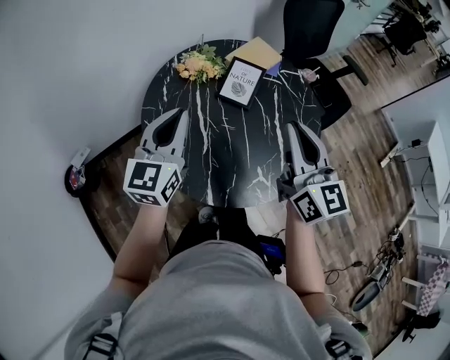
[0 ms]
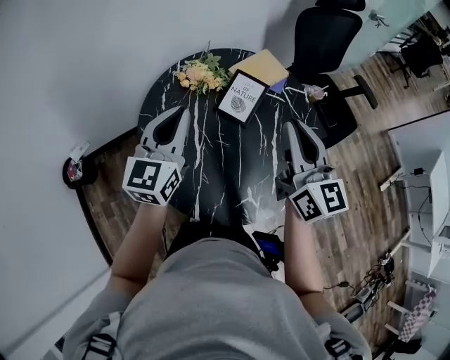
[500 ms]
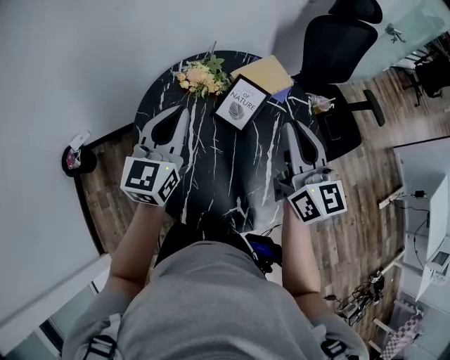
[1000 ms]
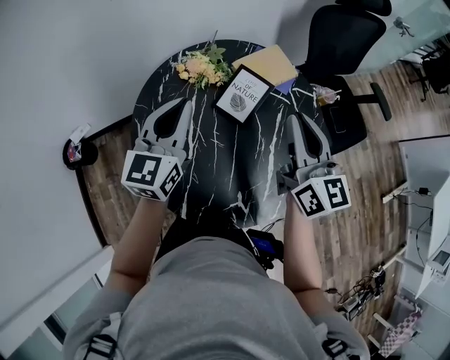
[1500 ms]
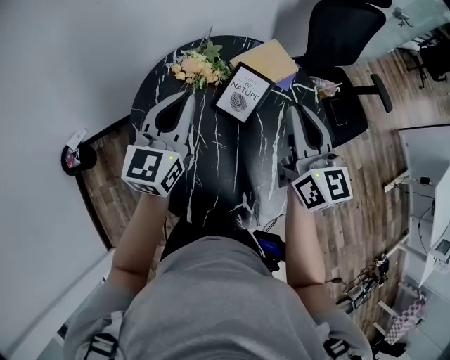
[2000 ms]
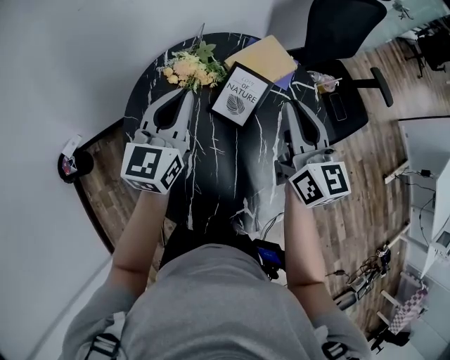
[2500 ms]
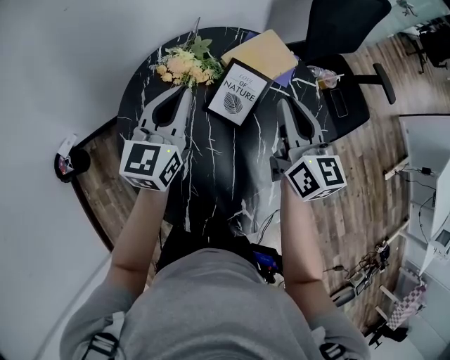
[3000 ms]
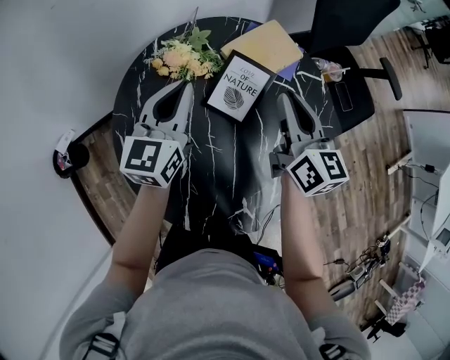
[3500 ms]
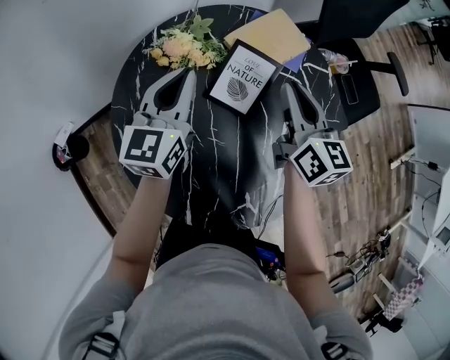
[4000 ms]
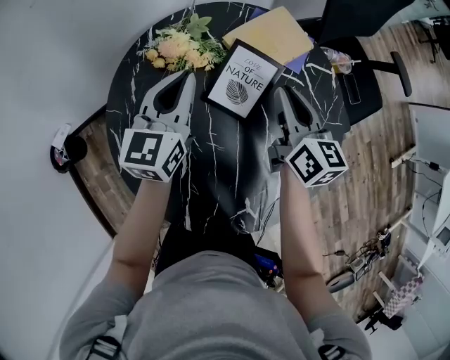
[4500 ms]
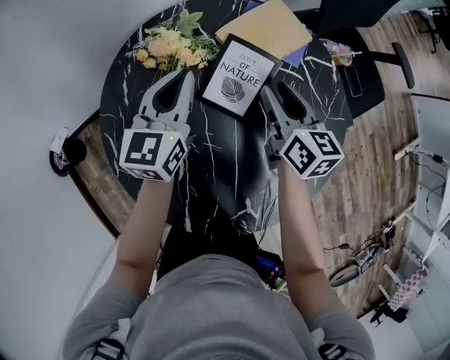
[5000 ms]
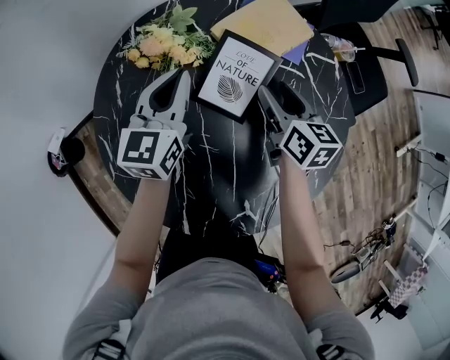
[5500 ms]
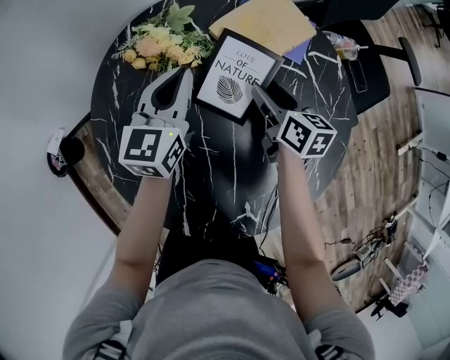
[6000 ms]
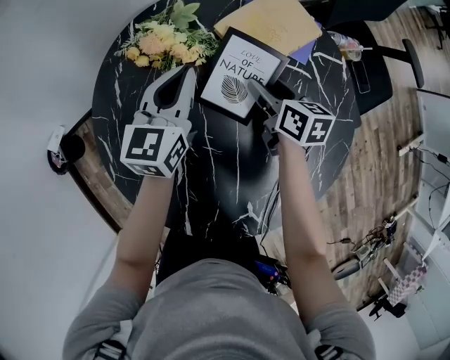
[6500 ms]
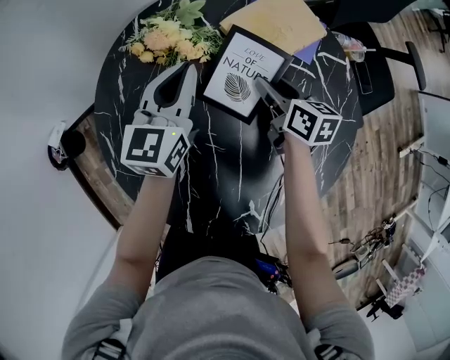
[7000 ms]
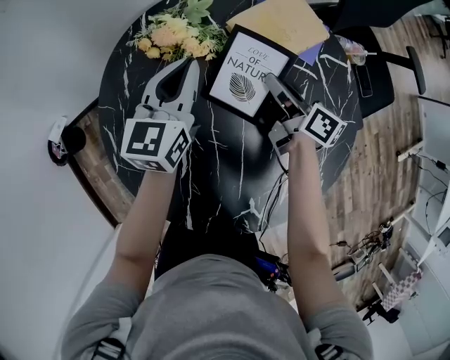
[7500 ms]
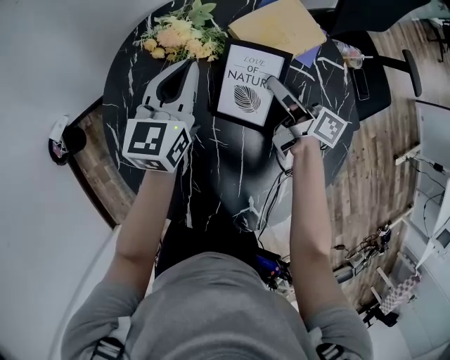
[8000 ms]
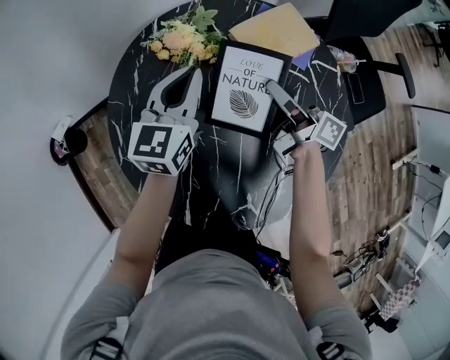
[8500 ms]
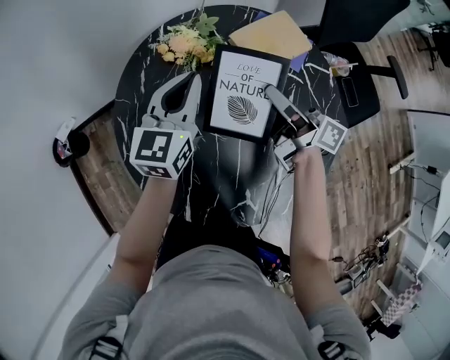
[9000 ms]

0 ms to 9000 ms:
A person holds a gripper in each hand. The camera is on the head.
0 ms to 2000 ms: The right gripper heads forward, covering about 20 cm; the left gripper moves forward and to the right, about 15 cm.
2000 ms to 4500 ms: The grippers both shift downward and forward by about 20 cm. The right gripper changes its angle by roughly 20 degrees.
4500 ms to 7000 ms: The right gripper heads downward, covering about 15 cm, changes its angle by some 20 degrees, and opens; the left gripper travels downward by approximately 5 cm.
7000 ms to 9000 ms: The right gripper is displaced upward by approximately 20 cm, tips its fingers upward by some 40 degrees, and closes; the left gripper shifts roughly 10 cm upward and backward.

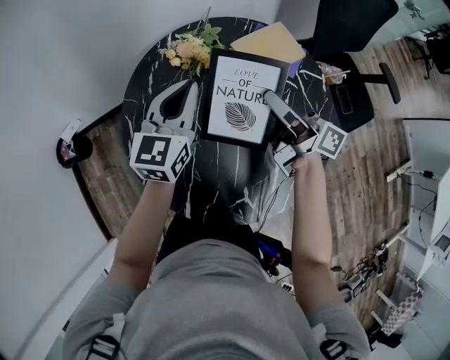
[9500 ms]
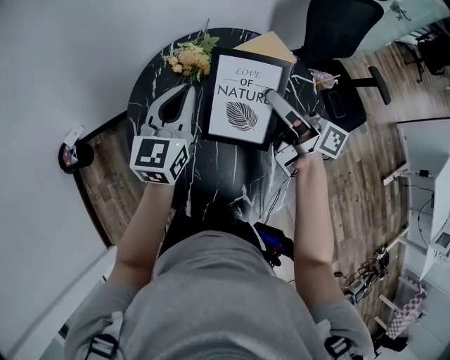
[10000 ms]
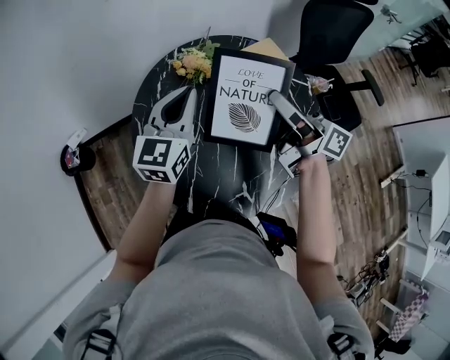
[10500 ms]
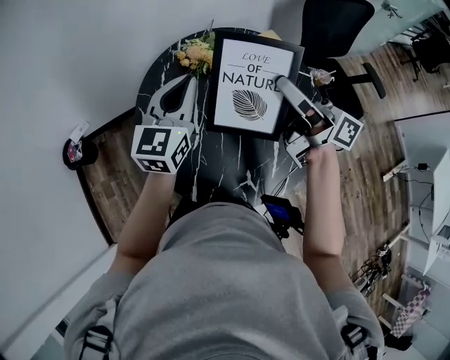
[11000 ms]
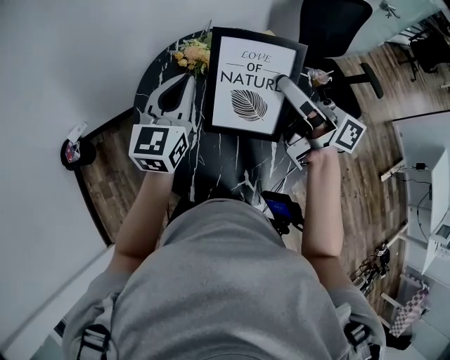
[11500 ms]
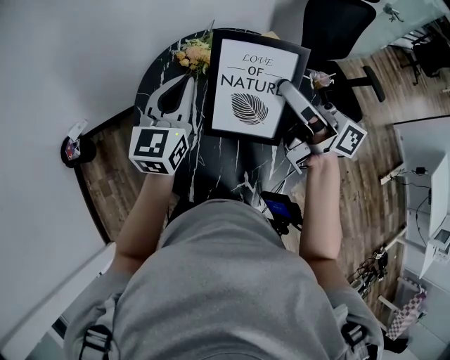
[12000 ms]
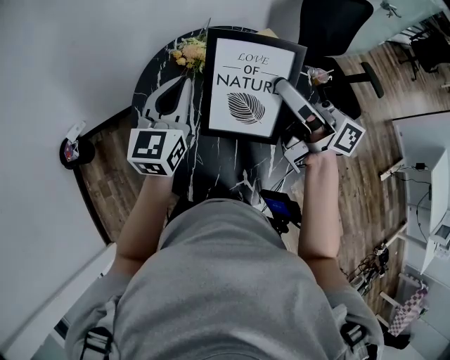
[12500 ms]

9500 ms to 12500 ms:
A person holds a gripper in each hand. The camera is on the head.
9500 ms to 11000 ms: The right gripper travels upward and backward by roughly 15 cm. The left gripper moves upward and backward, approximately 10 cm.
11000 ms to 12500 ms: The grippers make only small movements.

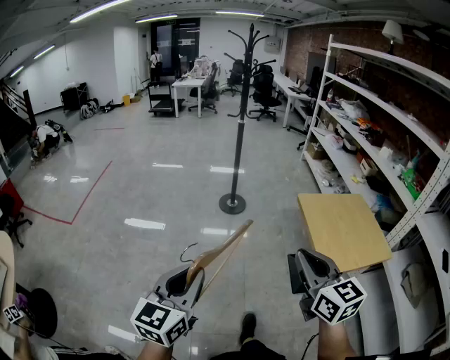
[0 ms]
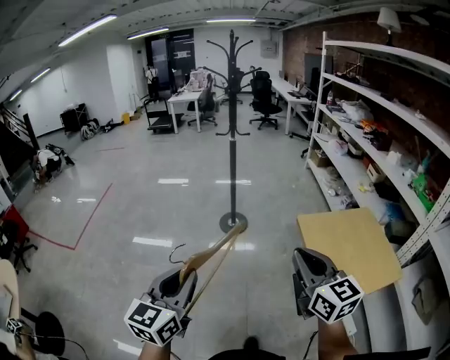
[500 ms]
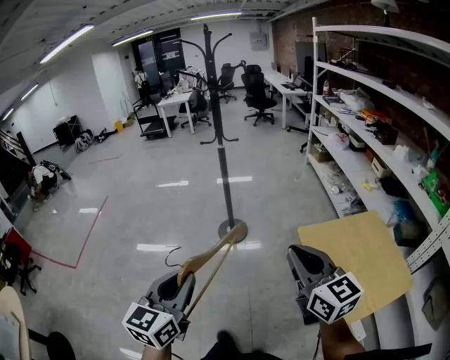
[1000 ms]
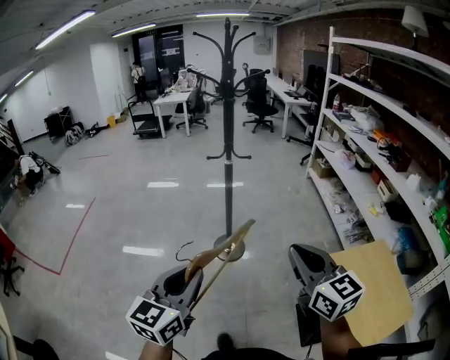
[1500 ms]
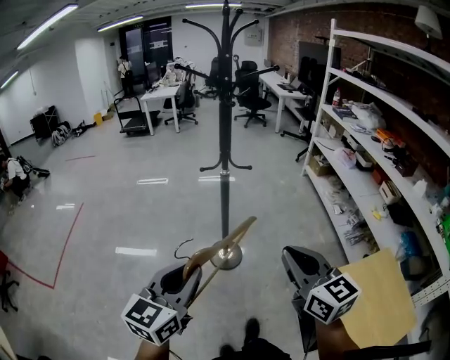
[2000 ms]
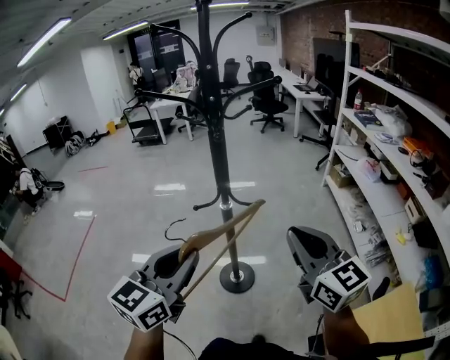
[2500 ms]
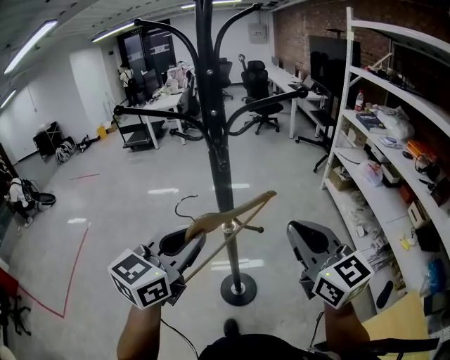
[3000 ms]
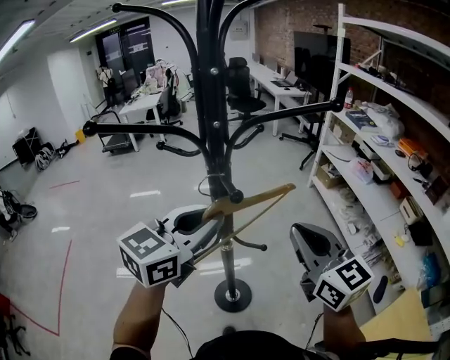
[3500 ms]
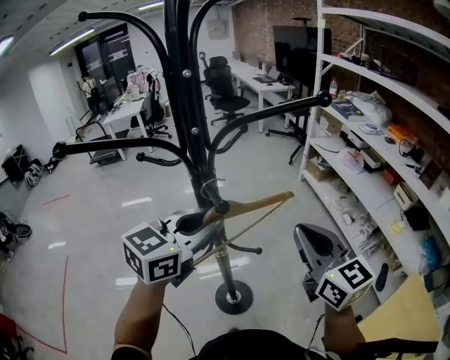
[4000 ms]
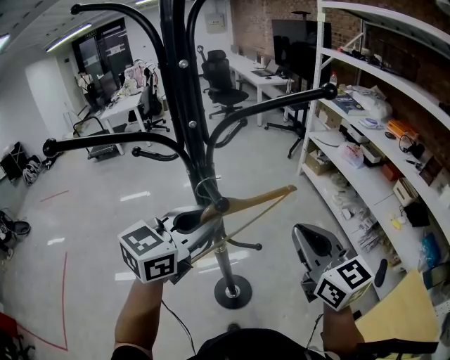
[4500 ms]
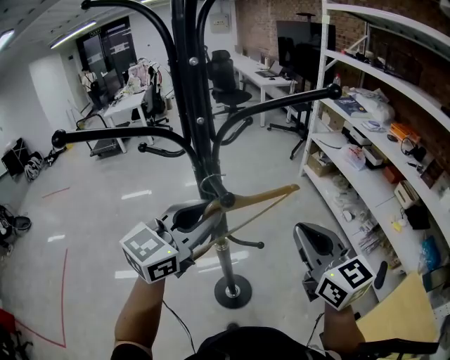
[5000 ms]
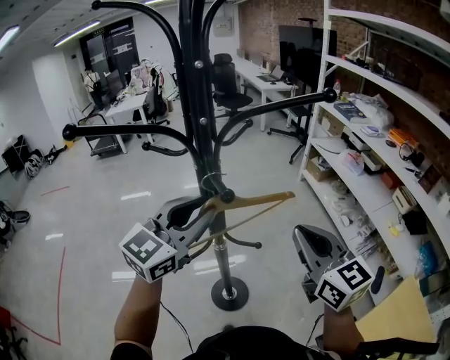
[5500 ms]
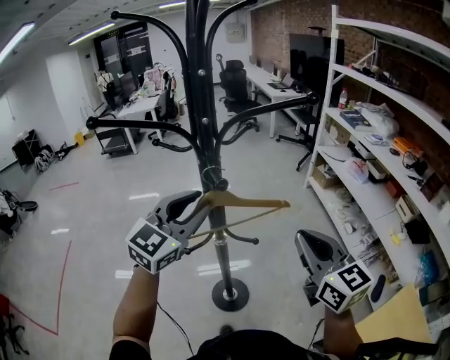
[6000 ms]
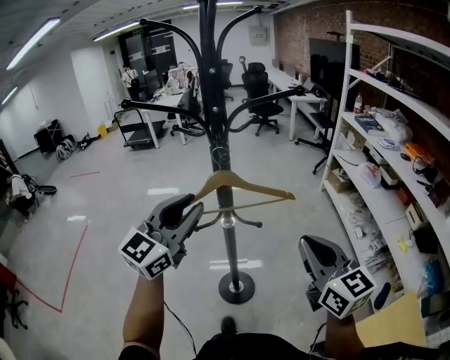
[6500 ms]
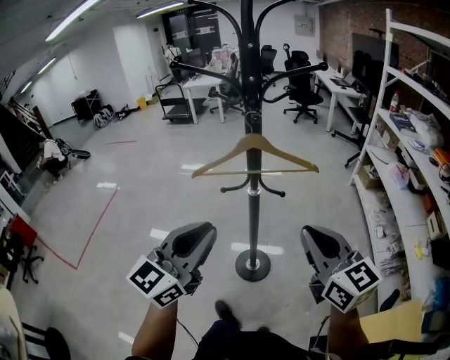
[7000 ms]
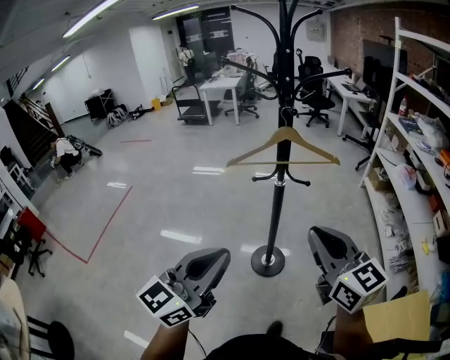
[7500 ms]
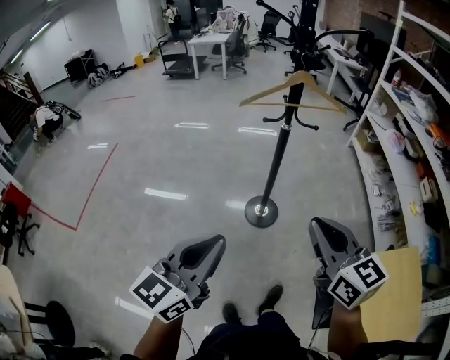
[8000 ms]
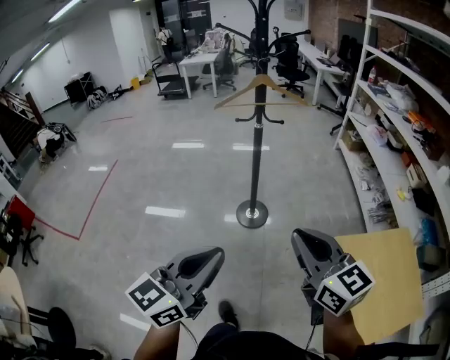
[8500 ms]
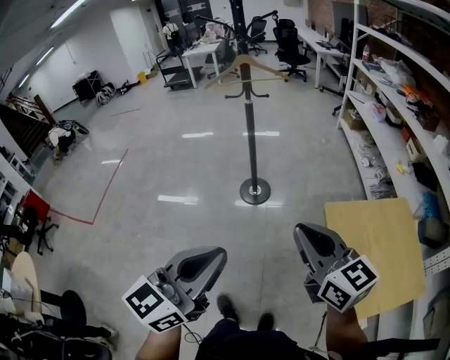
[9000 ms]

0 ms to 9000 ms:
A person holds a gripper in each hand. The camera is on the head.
0 ms to 2000 ms: Both grippers are carried forward, about 60 cm.
2000 ms to 4500 ms: The two grippers go some 40 cm forward. The left gripper rotates approximately 30 degrees.
4500 ms to 7000 ms: The left gripper moves some 25 cm, and turns by some 40 degrees; the right gripper shifts by about 15 cm, and swivels roughly 20 degrees.
7000 ms to 9000 ms: The pair of grippers is taken backward, roughly 50 cm.

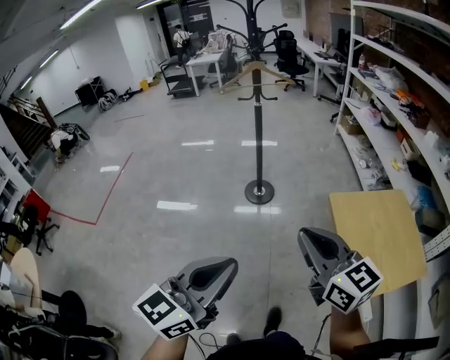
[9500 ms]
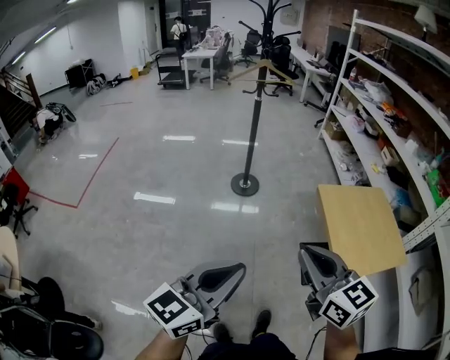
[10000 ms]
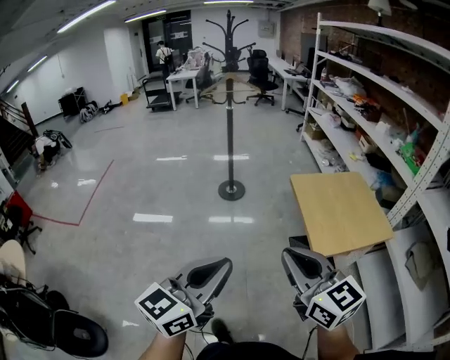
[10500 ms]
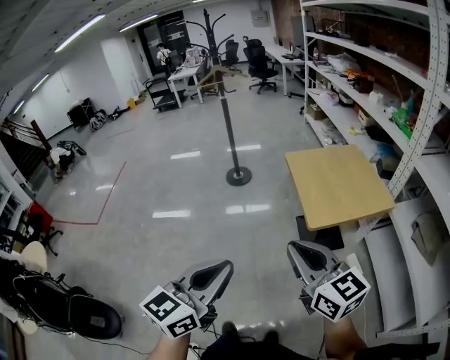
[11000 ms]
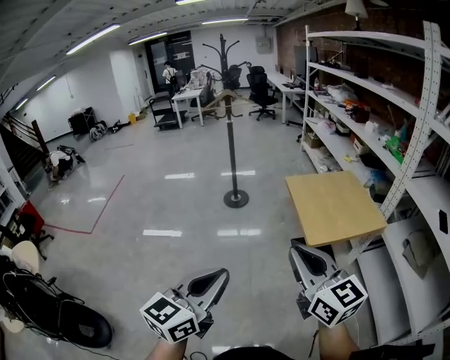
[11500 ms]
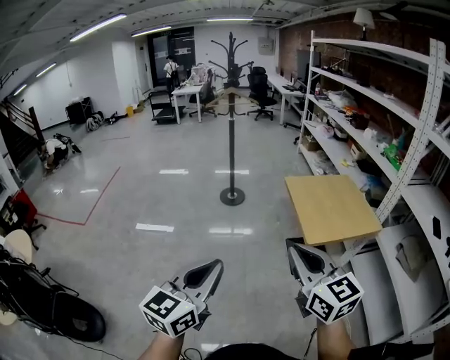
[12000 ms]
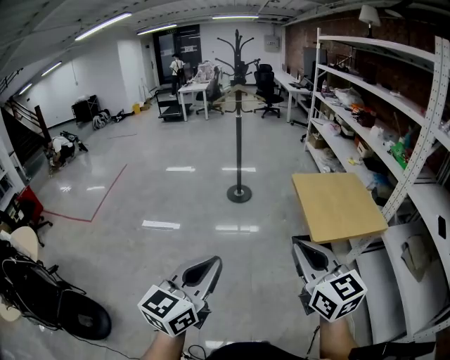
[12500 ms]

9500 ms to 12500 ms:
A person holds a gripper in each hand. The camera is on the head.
9500 ms to 11000 ms: Both grippers travel together backward and to the right, about 35 cm.
11000 ms to 12500 ms: The left gripper is displaced to the left by approximately 10 cm; the right gripper heads to the left, covering some 5 cm.

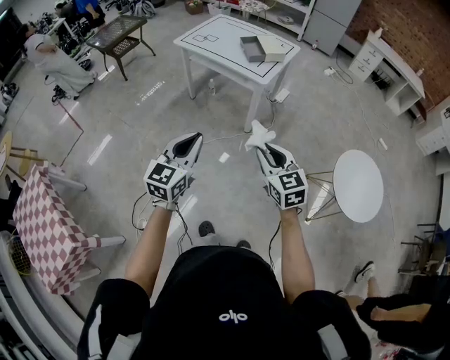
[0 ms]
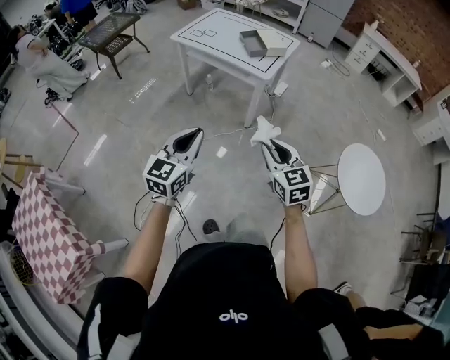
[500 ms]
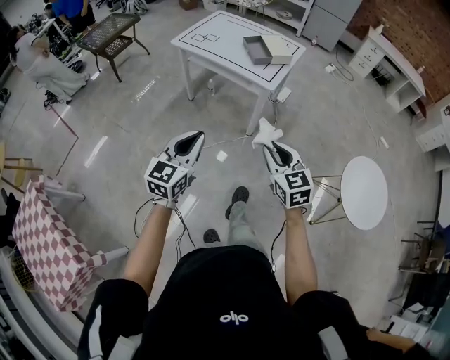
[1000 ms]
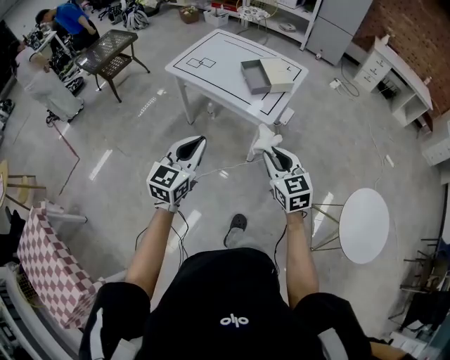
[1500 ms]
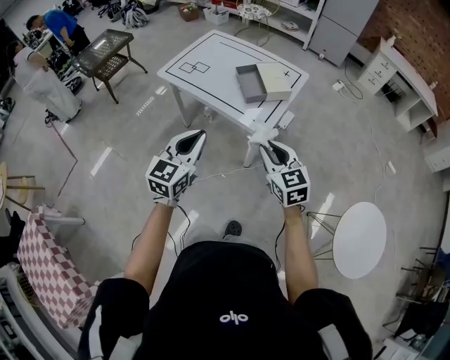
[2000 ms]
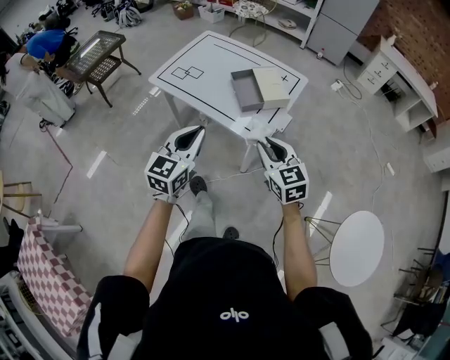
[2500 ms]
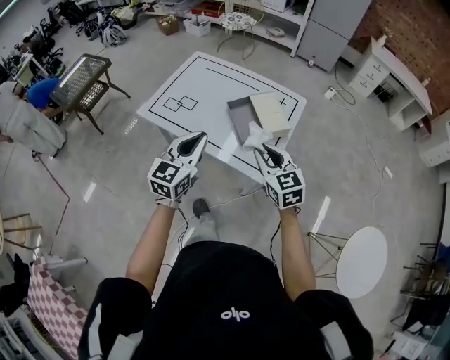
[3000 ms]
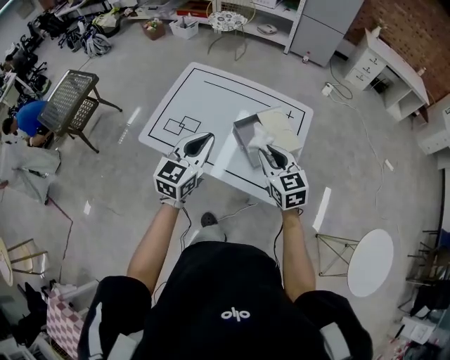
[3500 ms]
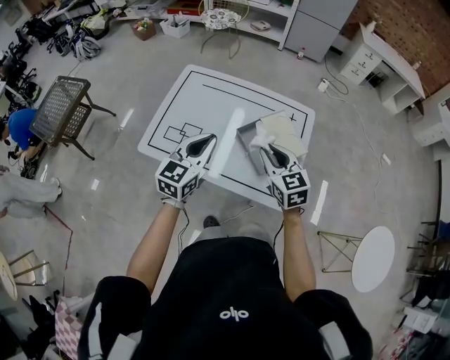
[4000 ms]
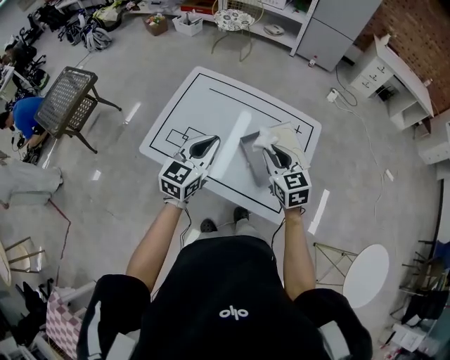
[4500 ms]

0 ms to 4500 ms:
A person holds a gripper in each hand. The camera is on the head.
0 ms to 2000 ms: The pair of grippers is taken forward, some 40 cm.
2000 ms to 4500 ms: The pair of grippers is taken forward, some 50 cm.
